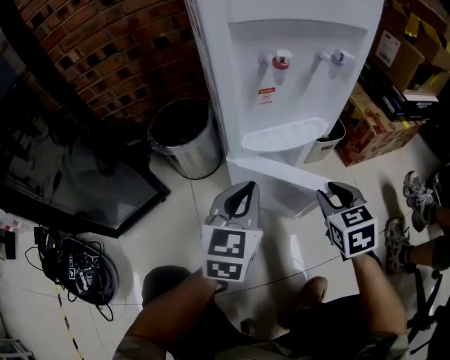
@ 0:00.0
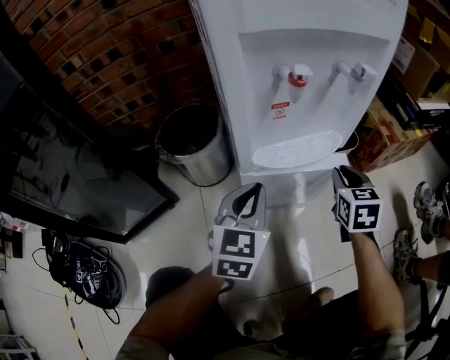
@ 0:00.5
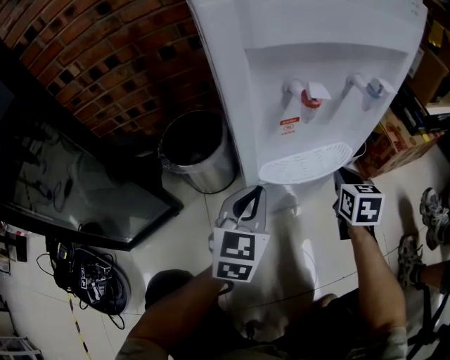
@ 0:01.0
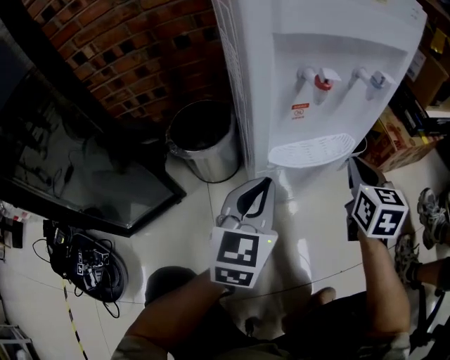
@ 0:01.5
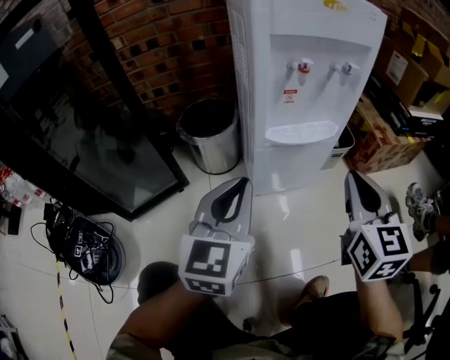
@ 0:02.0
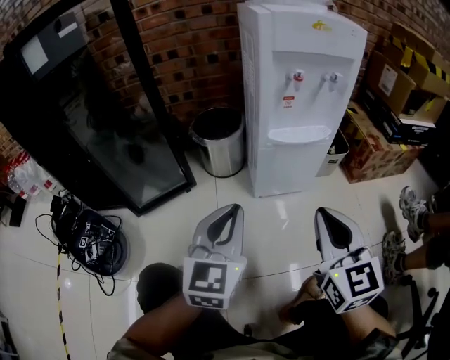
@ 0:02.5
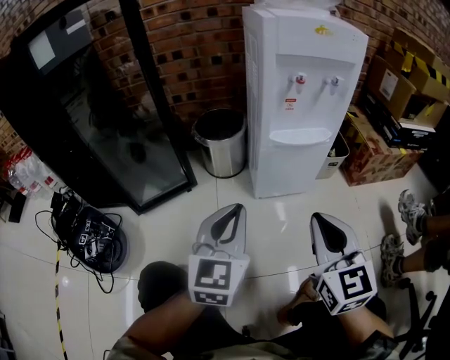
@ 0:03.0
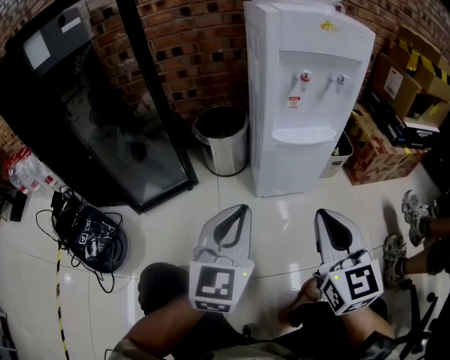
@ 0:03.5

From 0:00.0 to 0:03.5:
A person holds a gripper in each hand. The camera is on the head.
From 0:00.0 to 0:02.0: The left gripper heads upward, backward and to the left, covering approximately 15 cm. Meanwhile the right gripper heads upward, covering some 15 cm, reaches roughly 15 cm forward, then returns, changes its angle by approximately 30 degrees, and closes up.
From 0:02.0 to 0:03.5: The right gripper moves backward and to the left, some 15 cm. Meanwhile the left gripper shifts about 10 cm backward.

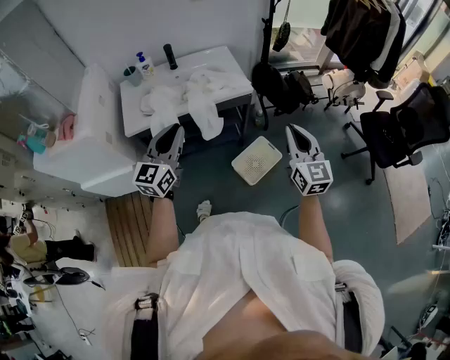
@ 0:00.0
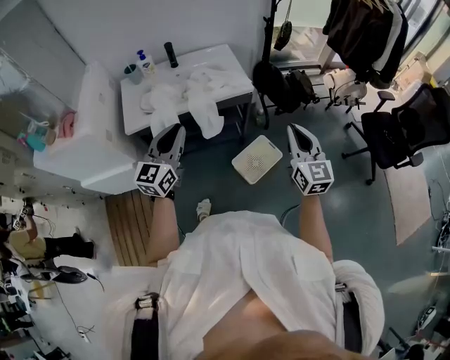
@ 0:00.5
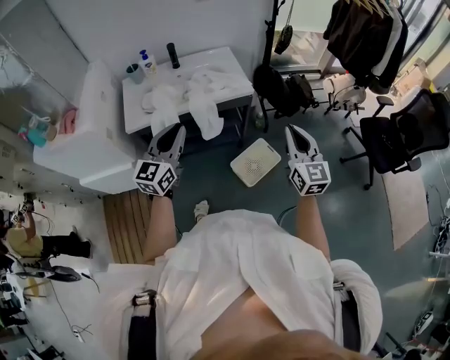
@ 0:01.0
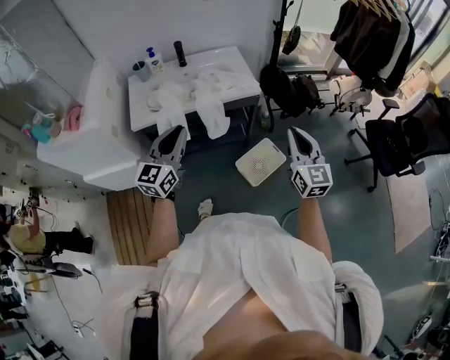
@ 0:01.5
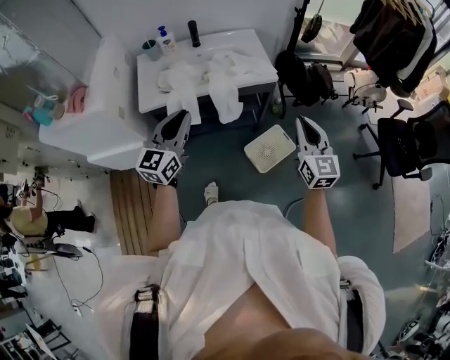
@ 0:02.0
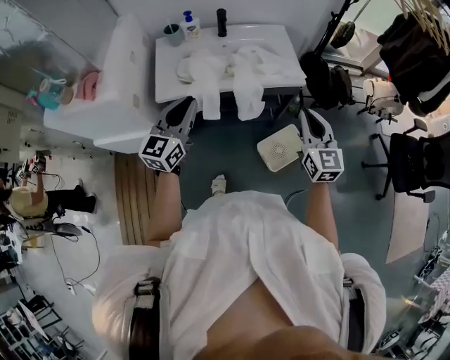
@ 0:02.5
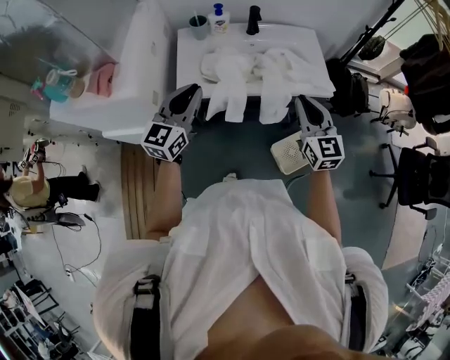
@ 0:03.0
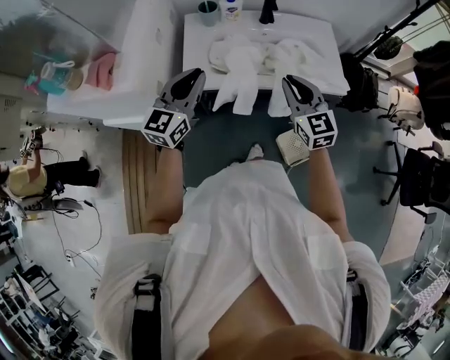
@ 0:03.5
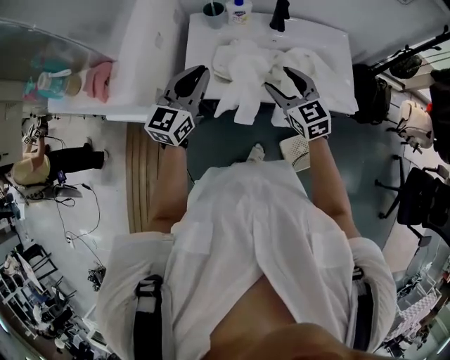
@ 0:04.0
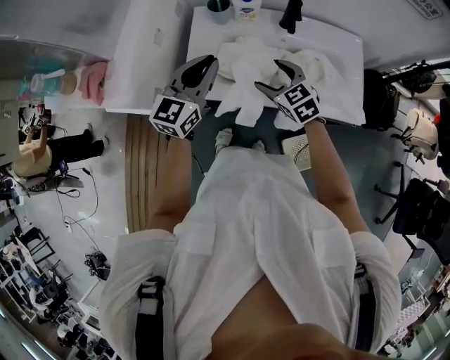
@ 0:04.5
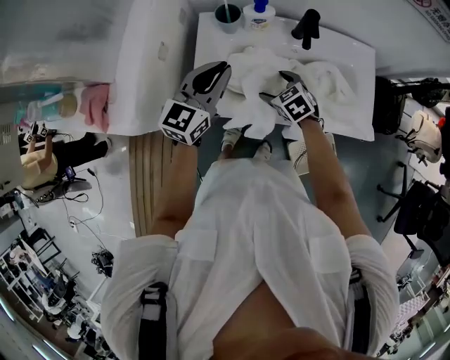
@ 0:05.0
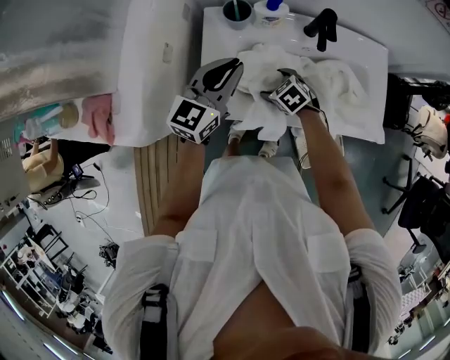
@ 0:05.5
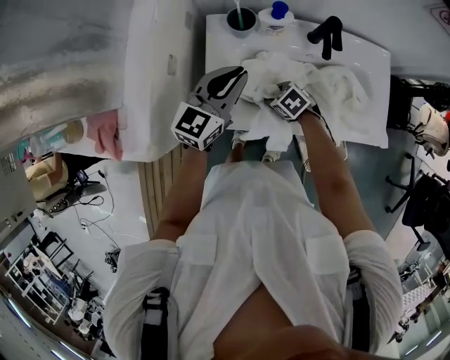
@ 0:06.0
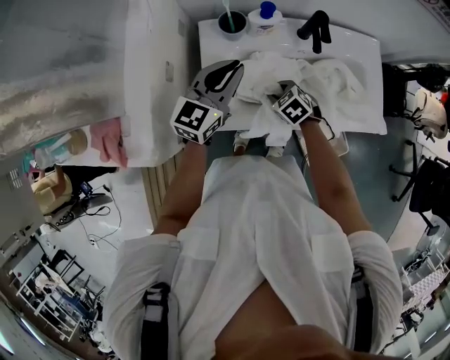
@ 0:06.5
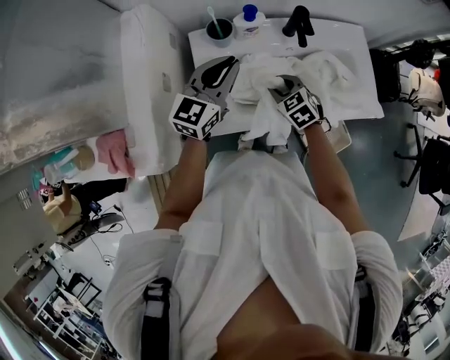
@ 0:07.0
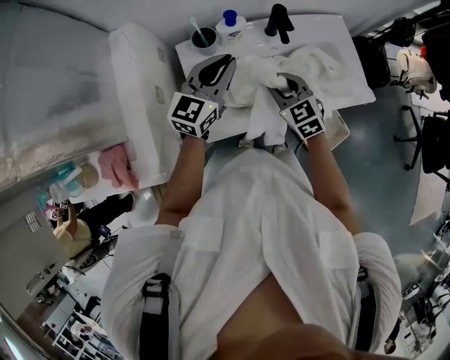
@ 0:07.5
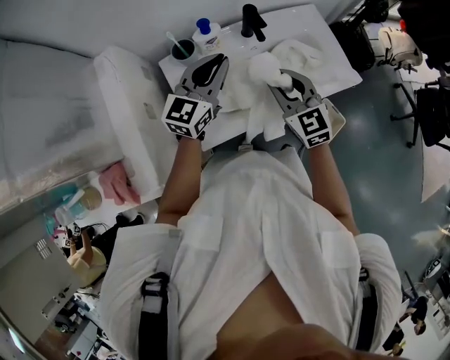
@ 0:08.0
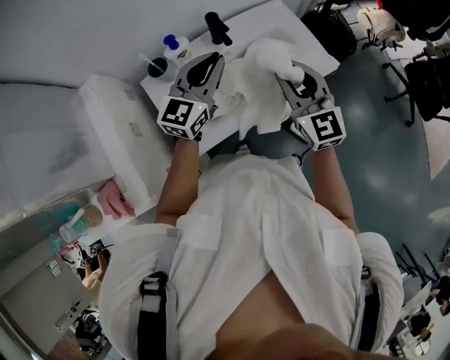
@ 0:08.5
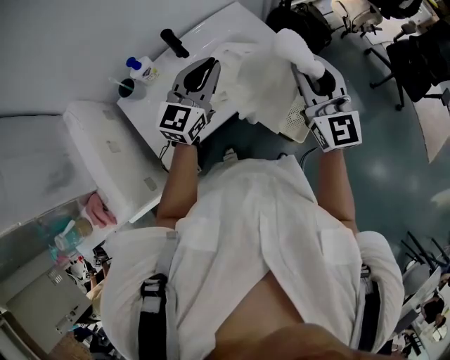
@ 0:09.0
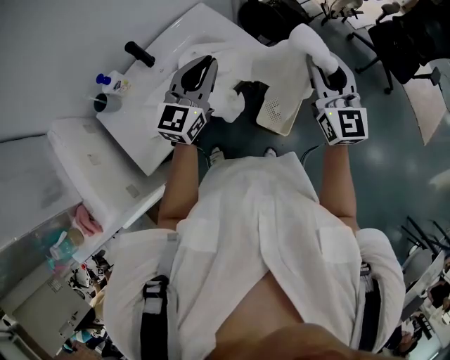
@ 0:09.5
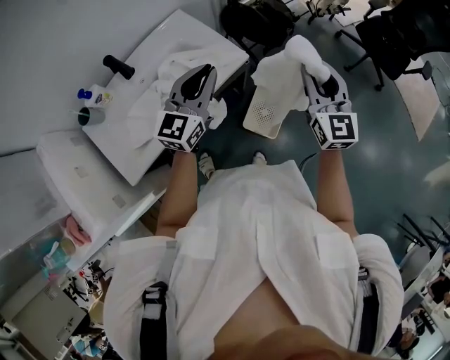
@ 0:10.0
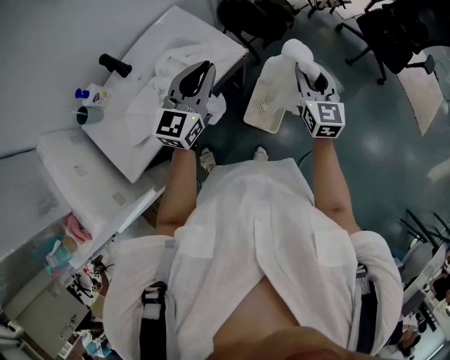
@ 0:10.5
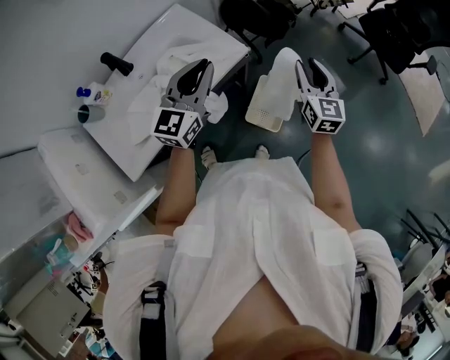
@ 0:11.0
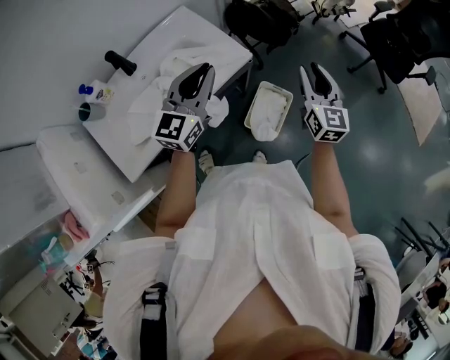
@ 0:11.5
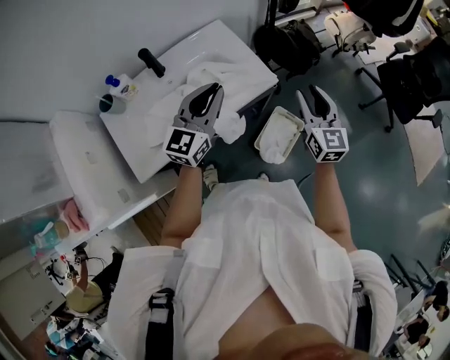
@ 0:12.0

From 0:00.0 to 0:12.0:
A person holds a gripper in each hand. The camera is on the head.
From 0:00.0 to 0:02.0: The grippers both shift to the left by roughly 5 cm.
From 0:02.0 to 0:04.0: Both grippers travel together forward and to the left, about 40 cm. The right gripper swivels roughly 40 degrees, and opens.
From 0:04.0 to 0:06.0: The right gripper moves downward and forward, some 25 cm, and points its fingers about 40 degrees further downward. The left gripper heads forward and downward, covering some 15 cm.
From 0:06.0 to 0:08.0: The left gripper moves some 10 cm, and turns by some 20 degrees; the right gripper heads upward, covering roughly 30 cm, and angles its fingers upward, by about 40 degrees.
From 0:08.0 to 0:10.0: The right gripper ends up approximately 50 cm from where it was, and changes its angle by some 40 degrees, while the left gripper moves approximately 40 cm.
From 0:10.0 to 0:12.0: The left gripper travels to the left by about 10 cm. The right gripper moves to the left and downward, some 10 cm.

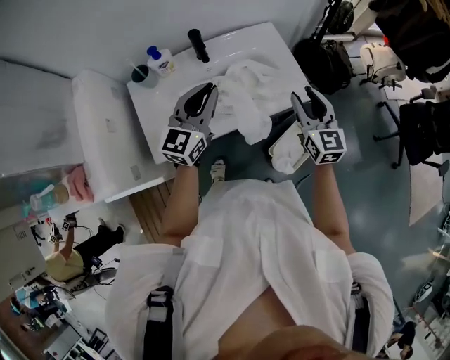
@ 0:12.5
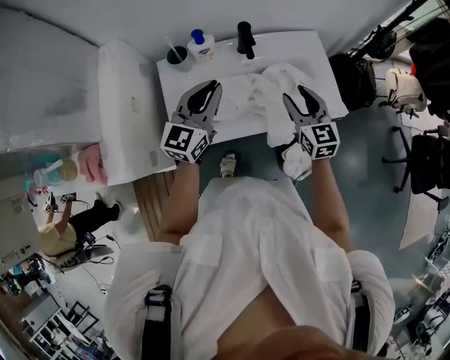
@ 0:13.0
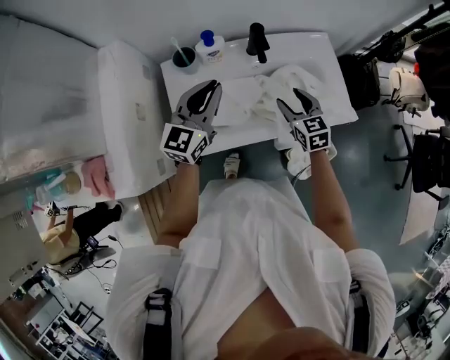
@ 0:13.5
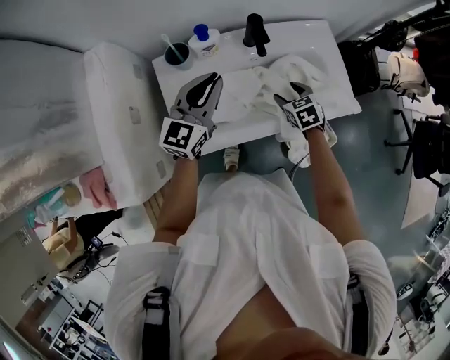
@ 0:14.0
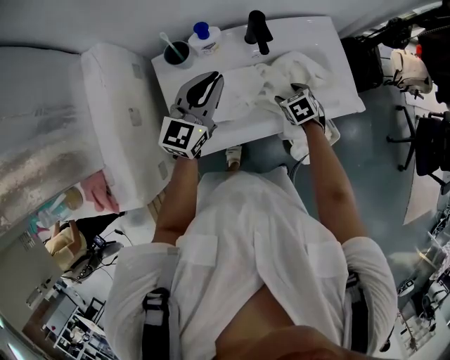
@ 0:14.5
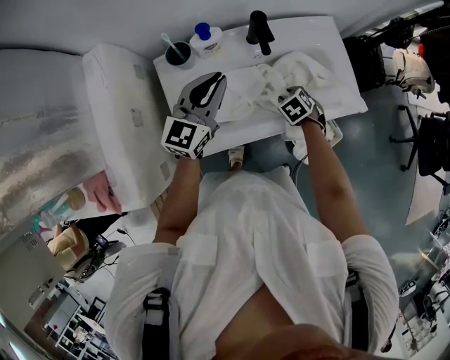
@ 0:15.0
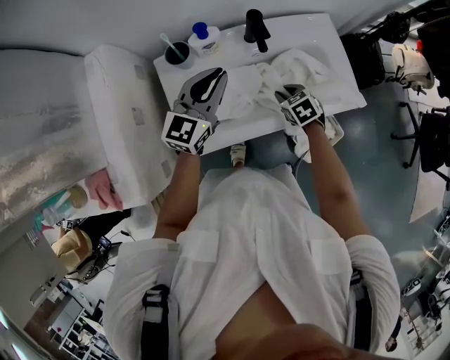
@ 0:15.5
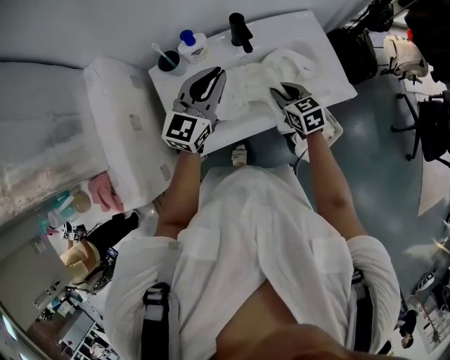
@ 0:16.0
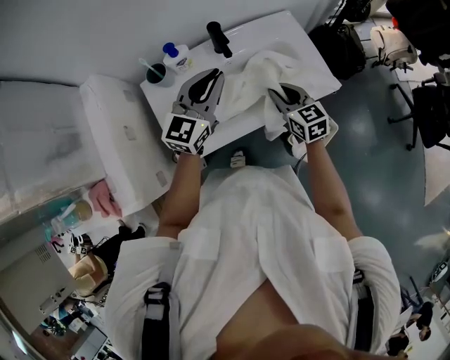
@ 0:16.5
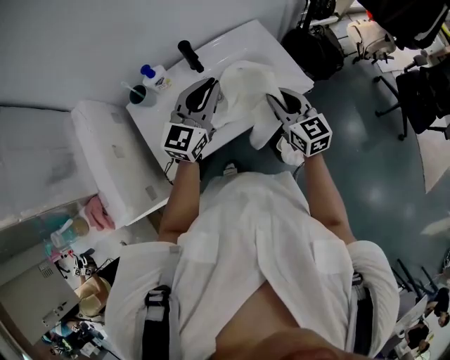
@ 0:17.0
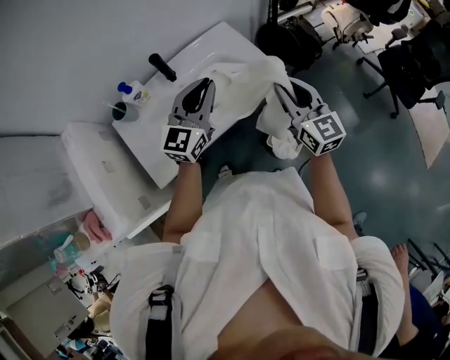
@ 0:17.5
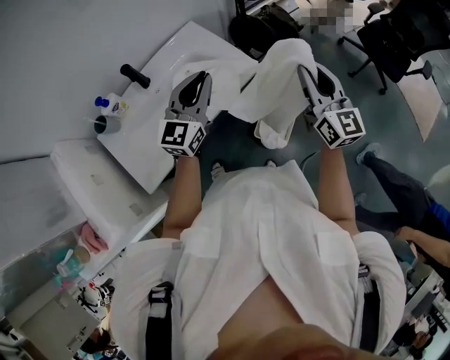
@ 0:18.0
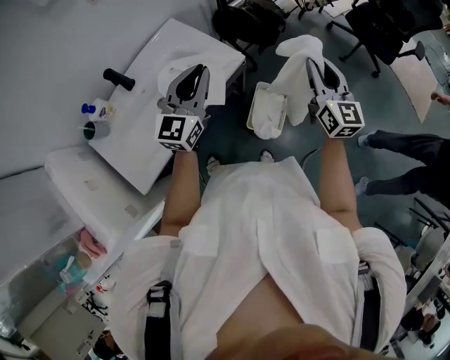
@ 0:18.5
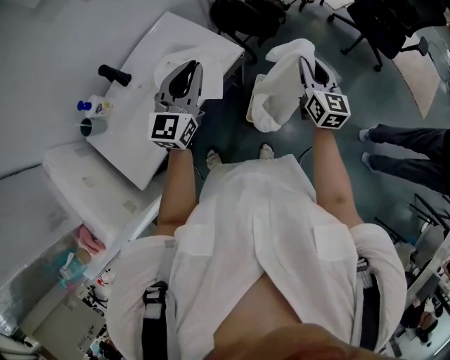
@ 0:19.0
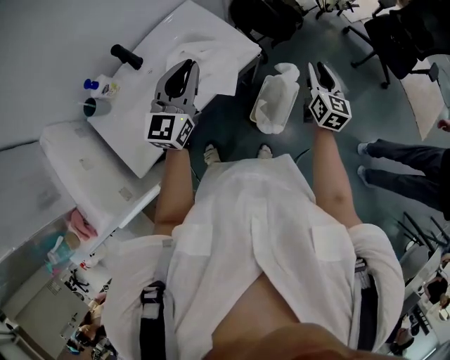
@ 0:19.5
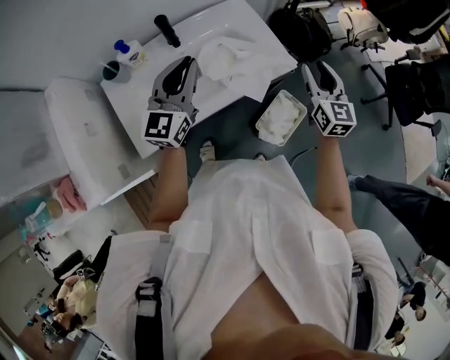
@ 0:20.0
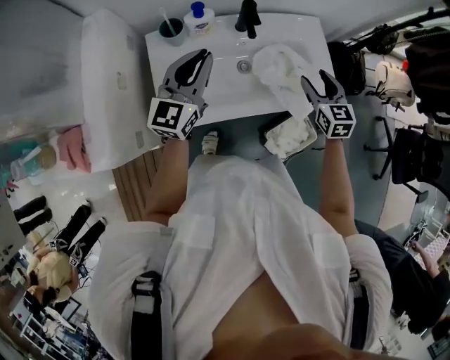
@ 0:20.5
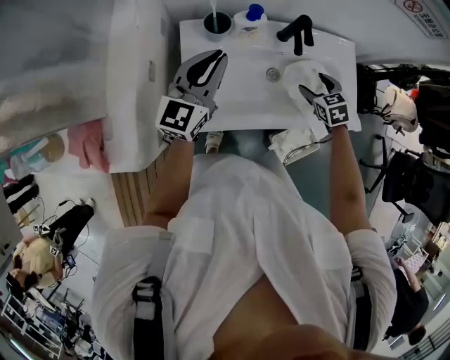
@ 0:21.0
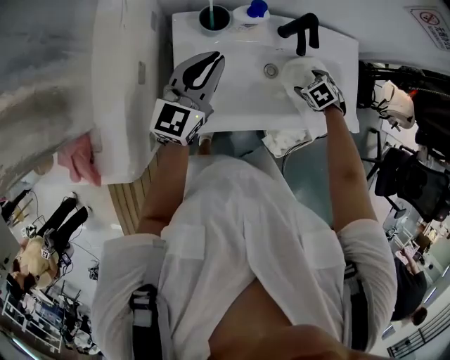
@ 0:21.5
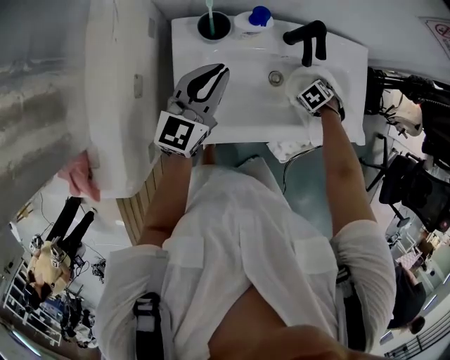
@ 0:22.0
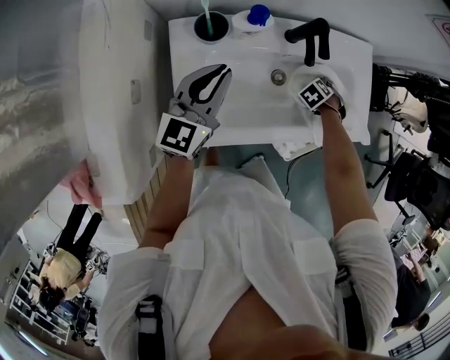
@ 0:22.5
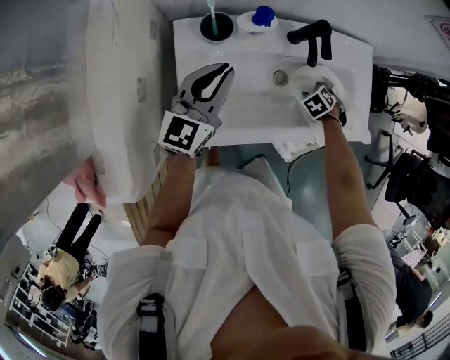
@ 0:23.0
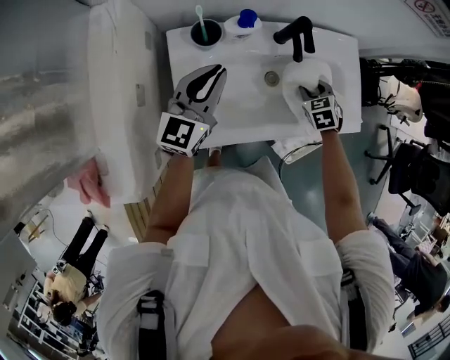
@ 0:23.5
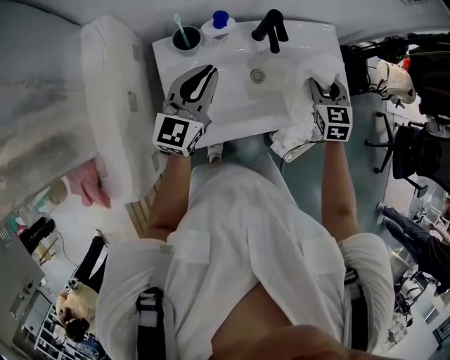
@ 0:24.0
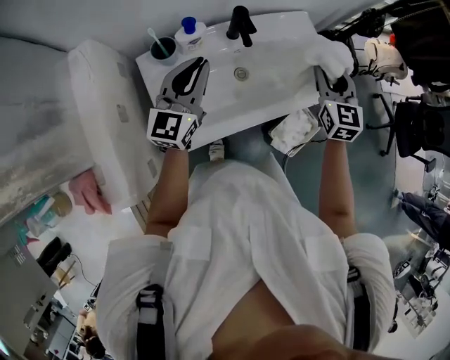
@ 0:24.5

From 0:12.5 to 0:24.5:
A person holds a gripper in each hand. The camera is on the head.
From 0:12.5 to 0:14.5: The right gripper travels downward and to the left by approximately 35 cm, and tilts its fingers approximately 60 degrees downward. The left gripper is displaced to the left, forward and downward by about 20 cm.
From 0:14.5 to 0:16.5: The right gripper goes about 15 cm upward, tilts its fingers approximately 40 degrees upward, and closes up. The left gripper travels to the right and upward by about 10 cm.
From 0:16.5 to 0:18.5: The left gripper ends up approximately 30 cm from where it was, while the right gripper ends up some 50 cm from where it was, and swivels some 50 degrees.
From 0:18.5 to 0:20.5: The right gripper goes up and down, roughly 10 cm each way, reversing 2 times, rotates about 50 degrees, and opens its fingers, while the left gripper changes place by about 35 cm, and turns by some 30 degrees.
From 0:20.5 to 0:22.5: The left gripper travels downward by approximately 10 cm; the right gripper moves downward, approximately 30 cm, and points its fingers approximately 60 degrees further downward.
From 0:22.5 to 0:24.5: The left gripper shifts roughly 10 cm upward. Meanwhile the right gripper travels upward by roughly 35 cm, points its fingers approximately 70 degrees further upward, and closes up.
